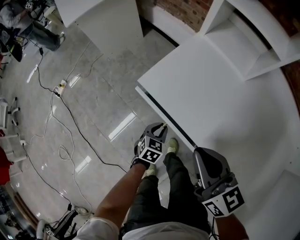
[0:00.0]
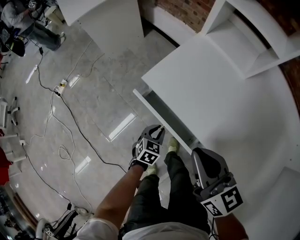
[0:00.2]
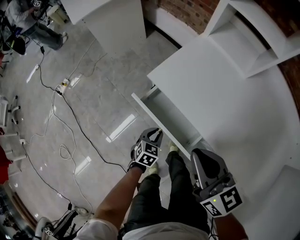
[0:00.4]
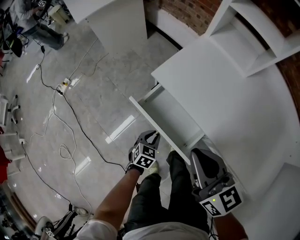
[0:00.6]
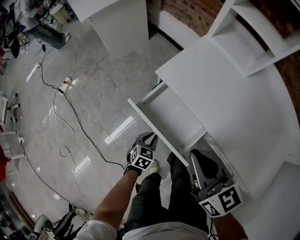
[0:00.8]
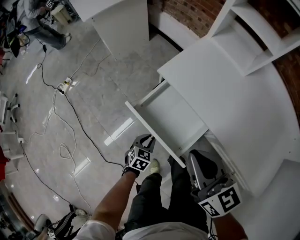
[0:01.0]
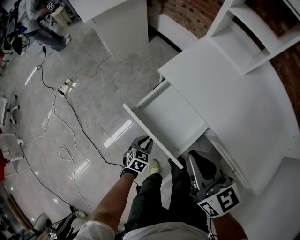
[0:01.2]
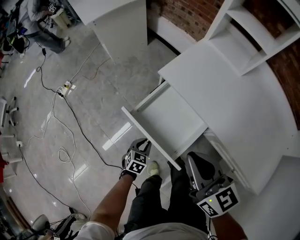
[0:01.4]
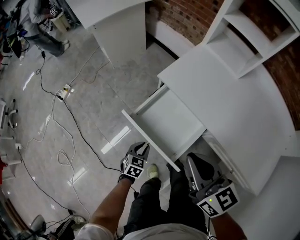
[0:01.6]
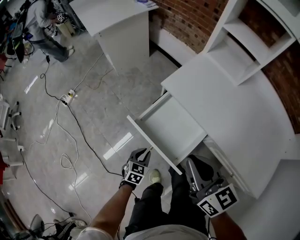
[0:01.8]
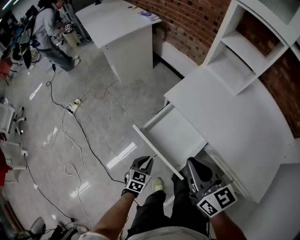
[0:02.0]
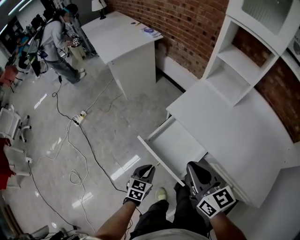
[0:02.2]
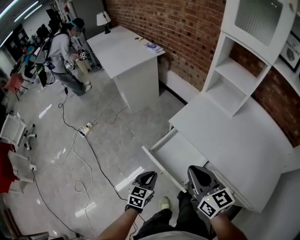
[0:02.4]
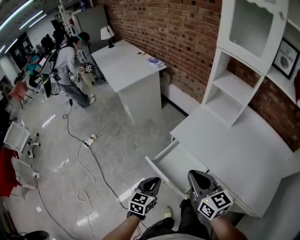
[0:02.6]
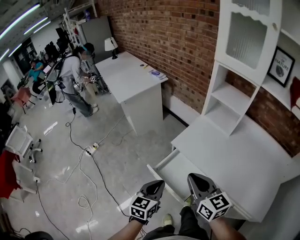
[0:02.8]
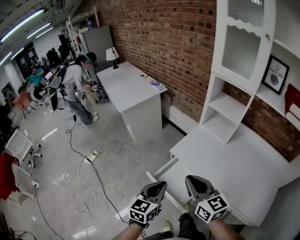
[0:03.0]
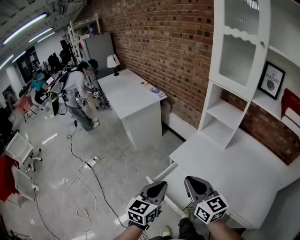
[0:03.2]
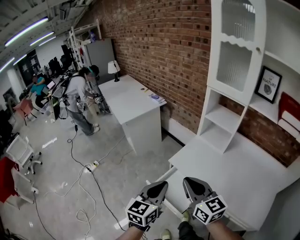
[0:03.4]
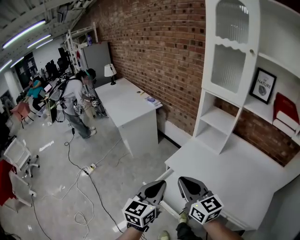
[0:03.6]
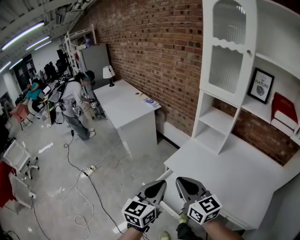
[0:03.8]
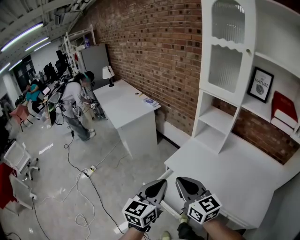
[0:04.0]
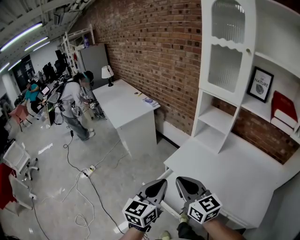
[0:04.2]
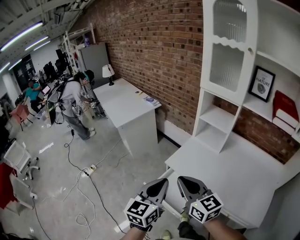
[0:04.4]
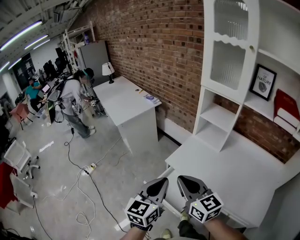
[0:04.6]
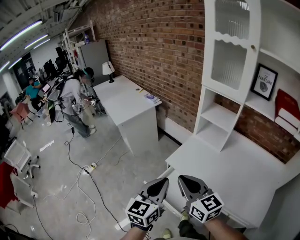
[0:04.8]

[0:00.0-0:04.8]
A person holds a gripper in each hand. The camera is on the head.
0:00.0 to 0:01.6: The grippers both shift backward and to the left by approximately 20 cm.
0:01.6 to 0:03.2: The left gripper shifts approximately 50 cm upward, and tips its fingers upward by about 40 degrees, while the right gripper shifts approximately 20 cm upward.
0:03.2 to 0:04.8: The left gripper moves upward, about 5 cm.

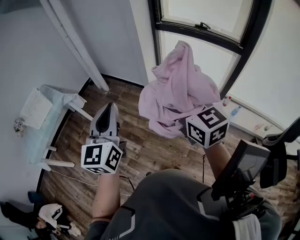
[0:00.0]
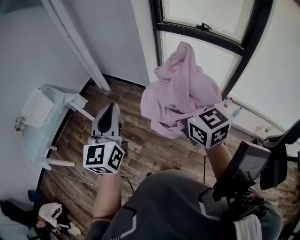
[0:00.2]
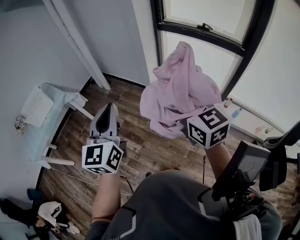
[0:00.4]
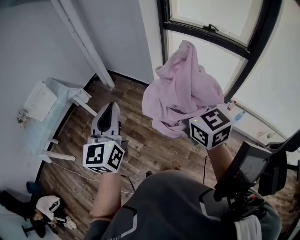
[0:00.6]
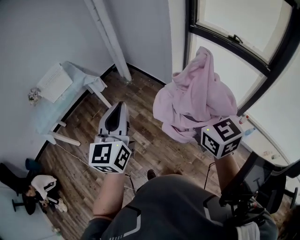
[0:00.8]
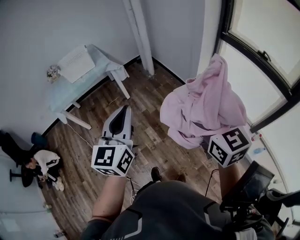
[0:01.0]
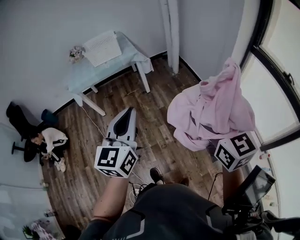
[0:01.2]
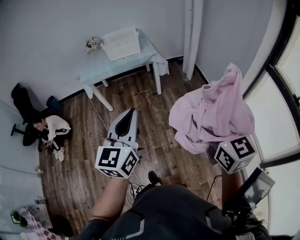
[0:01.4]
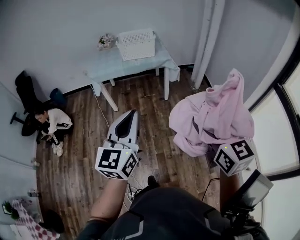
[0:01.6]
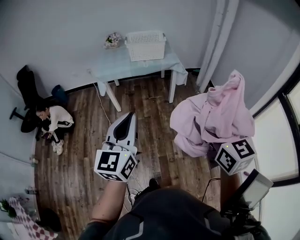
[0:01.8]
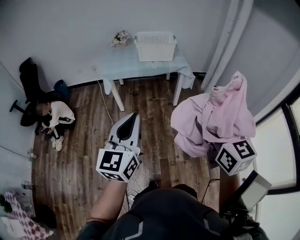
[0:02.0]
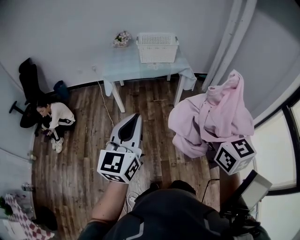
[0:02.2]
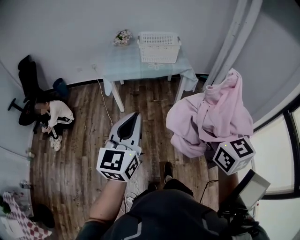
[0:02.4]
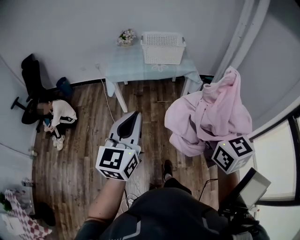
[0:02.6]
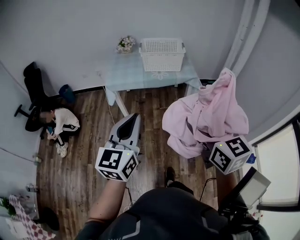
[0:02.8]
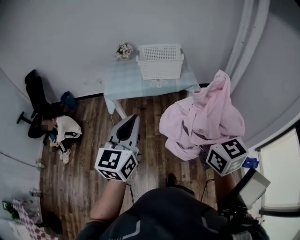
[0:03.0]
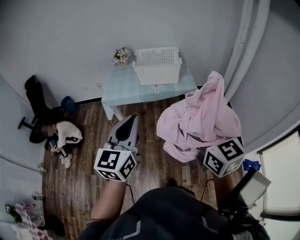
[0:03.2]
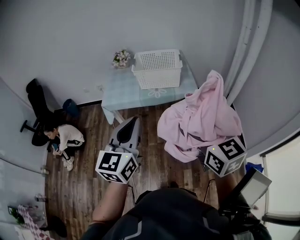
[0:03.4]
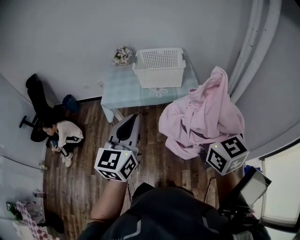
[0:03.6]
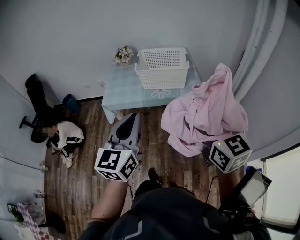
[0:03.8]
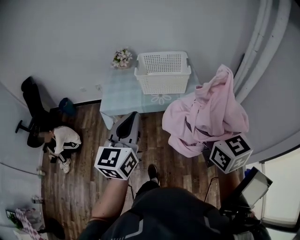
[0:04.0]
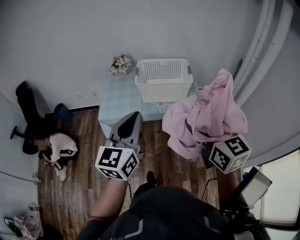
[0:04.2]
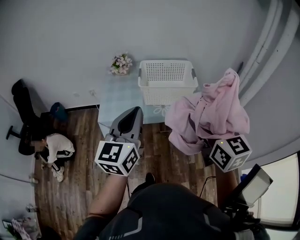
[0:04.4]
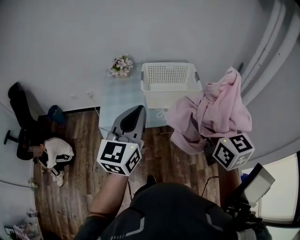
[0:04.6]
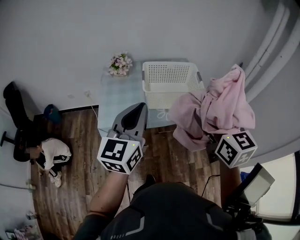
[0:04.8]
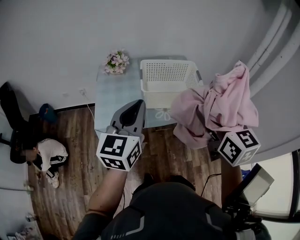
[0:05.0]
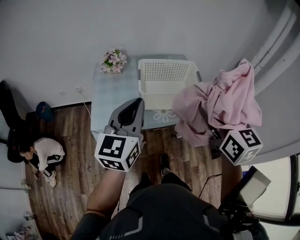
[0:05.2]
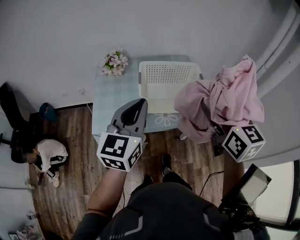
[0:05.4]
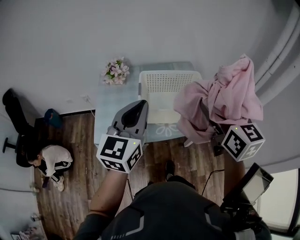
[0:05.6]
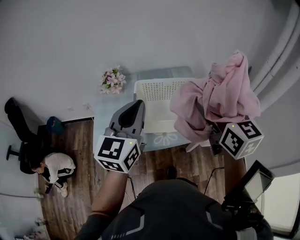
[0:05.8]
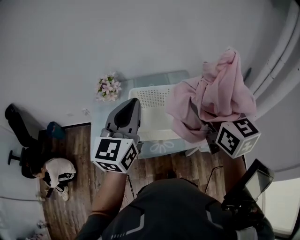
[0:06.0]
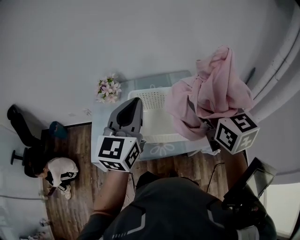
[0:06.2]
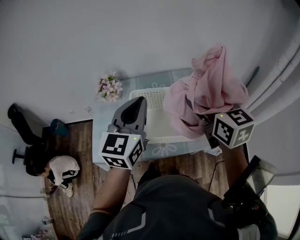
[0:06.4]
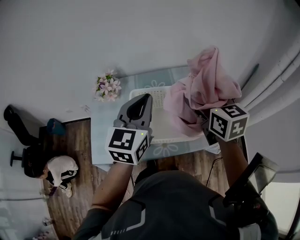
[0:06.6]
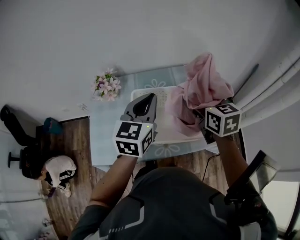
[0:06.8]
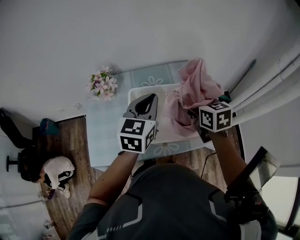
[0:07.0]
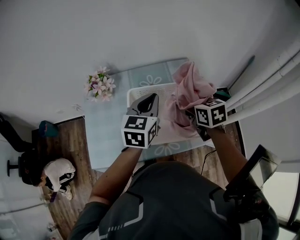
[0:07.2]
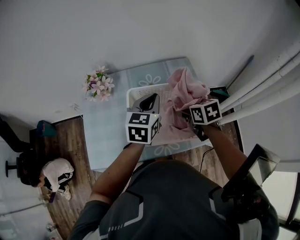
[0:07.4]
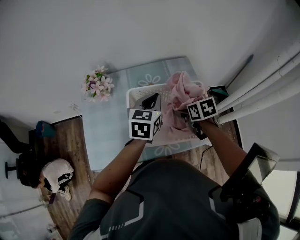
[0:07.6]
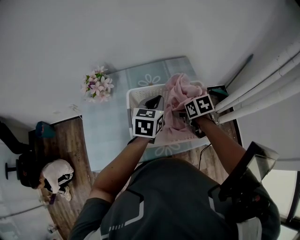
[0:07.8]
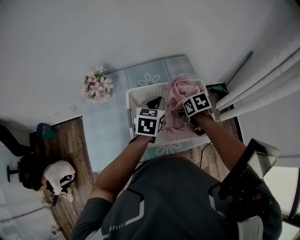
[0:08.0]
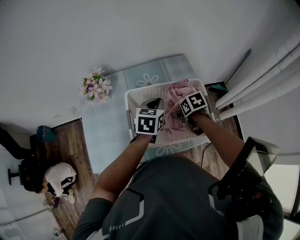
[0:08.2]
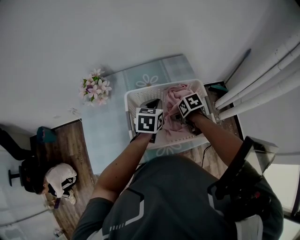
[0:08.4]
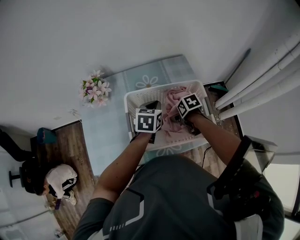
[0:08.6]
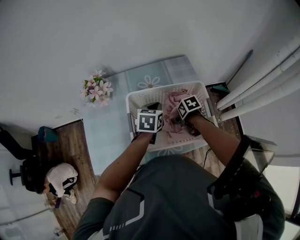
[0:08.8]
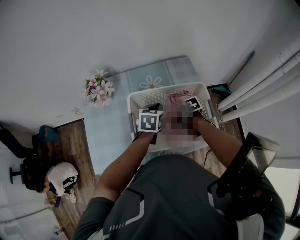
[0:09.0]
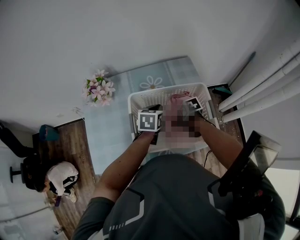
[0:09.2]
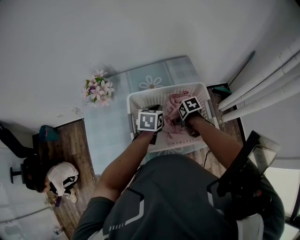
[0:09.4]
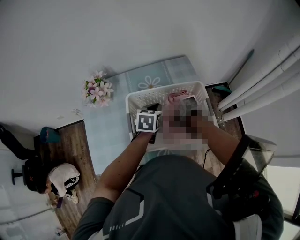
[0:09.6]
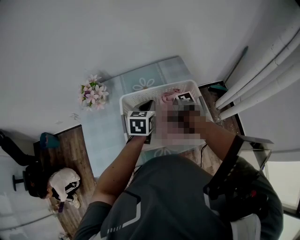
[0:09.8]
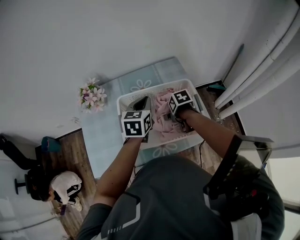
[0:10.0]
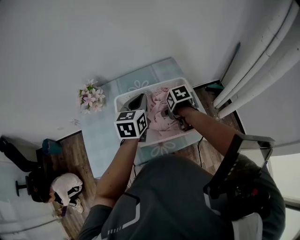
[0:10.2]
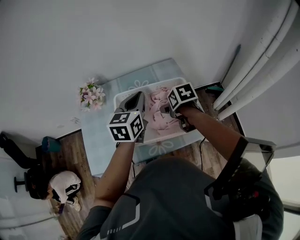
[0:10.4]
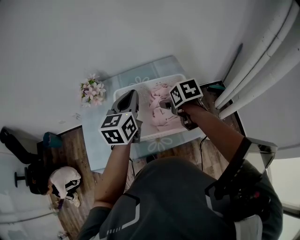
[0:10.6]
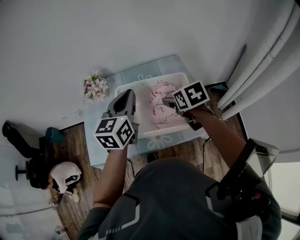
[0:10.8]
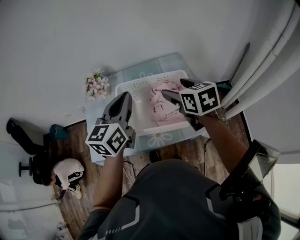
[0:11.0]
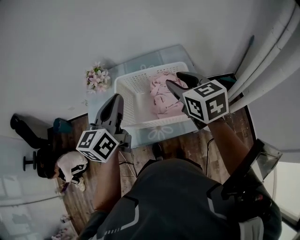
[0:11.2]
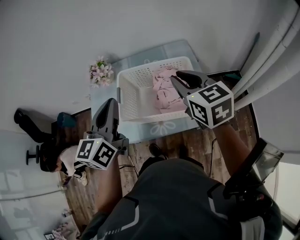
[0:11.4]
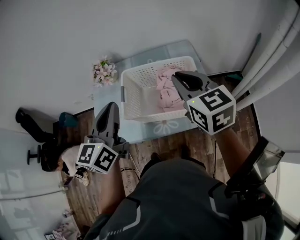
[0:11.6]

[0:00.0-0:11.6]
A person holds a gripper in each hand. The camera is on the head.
0:00.0 to 0:01.4: The right gripper changes place by approximately 25 cm, and rotates some 30 degrees. The left gripper shifts by approximately 25 cm, and turns by about 40 degrees.
0:01.4 to 0:02.8: Both grippers move forward and to the left, some 30 cm.
0:02.8 to 0:04.4: Both grippers travel together forward, some 35 cm.
0:04.4 to 0:05.8: The two grippers go approximately 25 cm forward.
0:05.8 to 0:07.2: The right gripper moves downward and forward, about 30 cm, and points its fingers roughly 30 degrees further downward, while the left gripper shifts about 25 cm forward and downward.
0:07.2 to 0:08.8: Both grippers move downward, roughly 20 cm. The right gripper angles its fingers downward, by roughly 30 degrees; the left gripper changes its angle by roughly 20 degrees.
0:08.8 to 0:10.2: Both grippers travel together upward, about 10 cm.
0:10.2 to 0:11.6: The left gripper shifts about 25 cm backward, upward and to the left, and turns by approximately 20 degrees, while the right gripper goes about 25 cm upward, points its fingers about 50 degrees further upward, and closes.

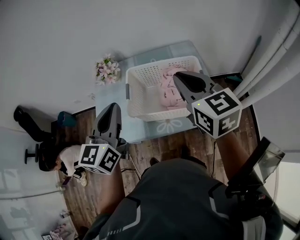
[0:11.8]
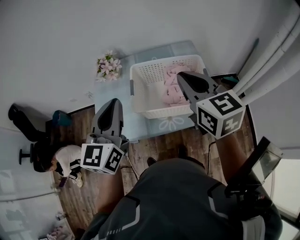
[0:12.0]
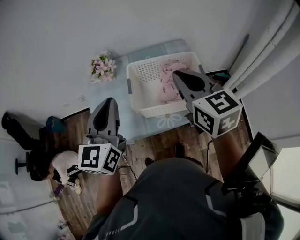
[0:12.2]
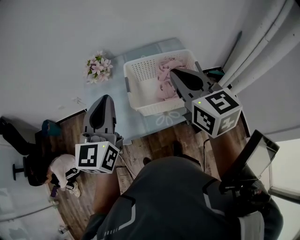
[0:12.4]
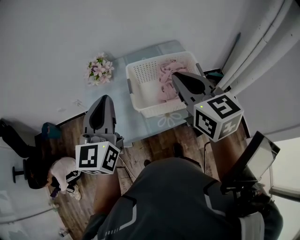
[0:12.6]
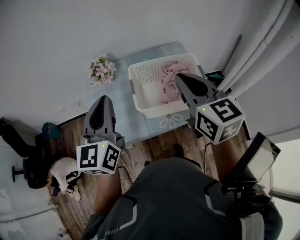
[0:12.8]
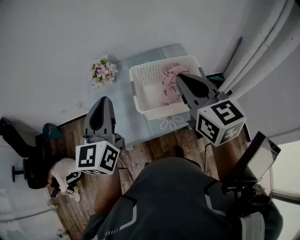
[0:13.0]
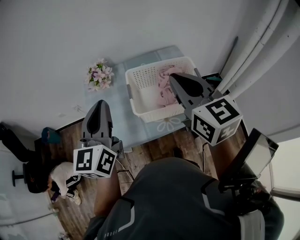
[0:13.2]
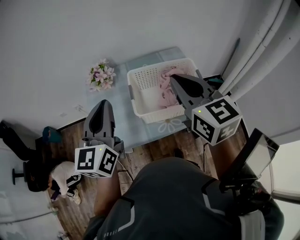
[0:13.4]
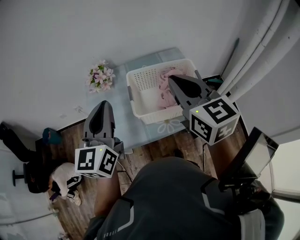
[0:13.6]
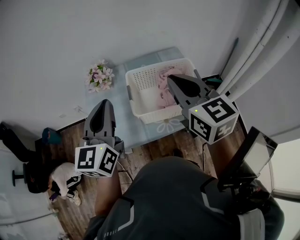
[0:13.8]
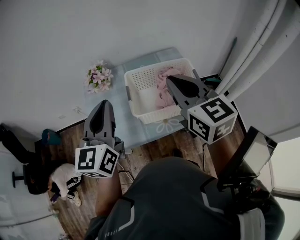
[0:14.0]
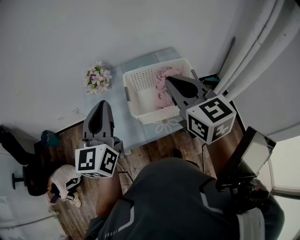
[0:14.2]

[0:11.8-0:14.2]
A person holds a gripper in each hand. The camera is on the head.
0:11.8 to 0:13.0: The right gripper goes approximately 10 cm to the left and backward. Meanwhile the left gripper heads to the left, covering roughly 10 cm.
0:13.0 to 0:14.2: There are only small adjustments of the grippers.

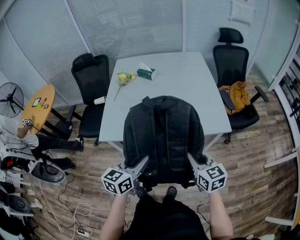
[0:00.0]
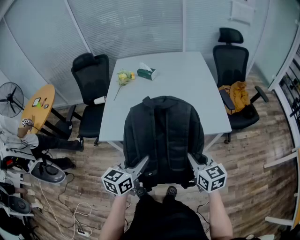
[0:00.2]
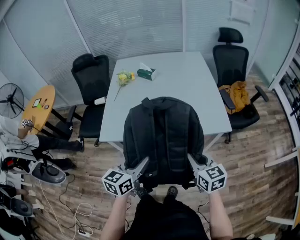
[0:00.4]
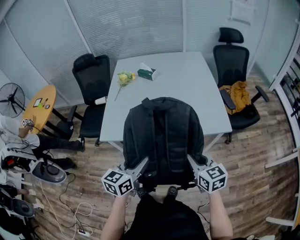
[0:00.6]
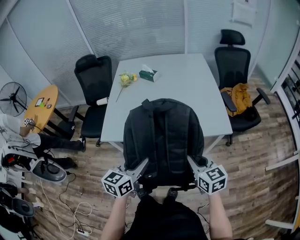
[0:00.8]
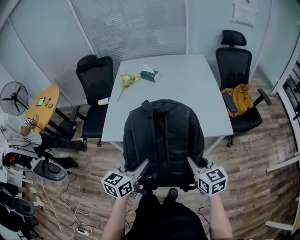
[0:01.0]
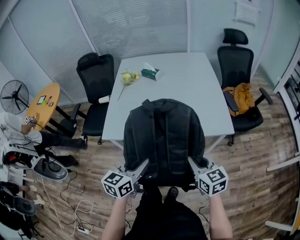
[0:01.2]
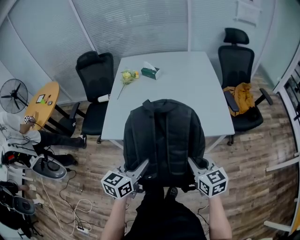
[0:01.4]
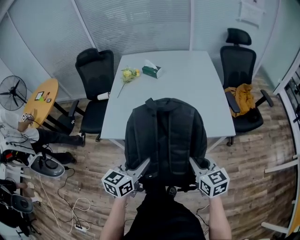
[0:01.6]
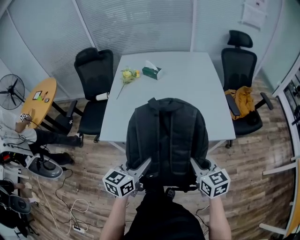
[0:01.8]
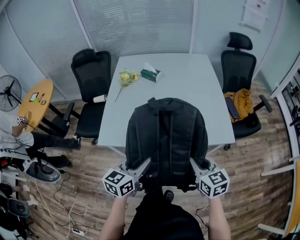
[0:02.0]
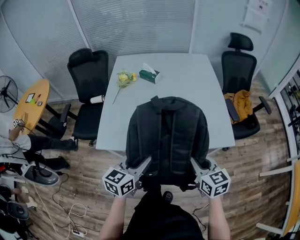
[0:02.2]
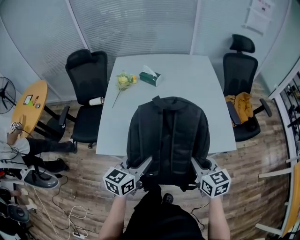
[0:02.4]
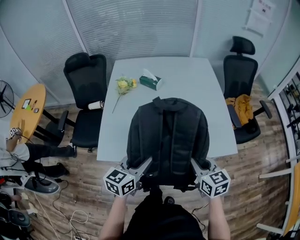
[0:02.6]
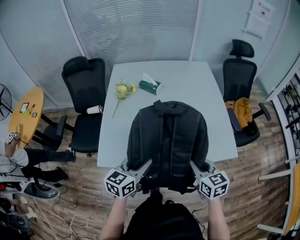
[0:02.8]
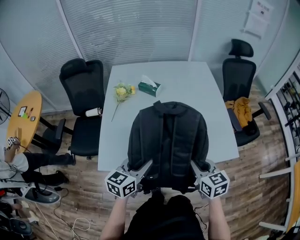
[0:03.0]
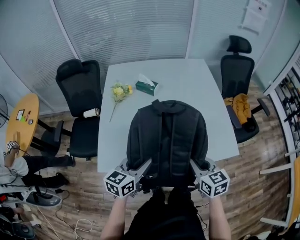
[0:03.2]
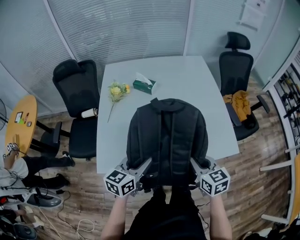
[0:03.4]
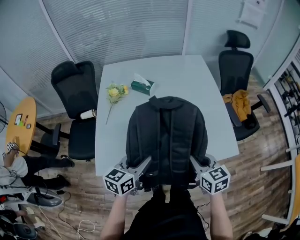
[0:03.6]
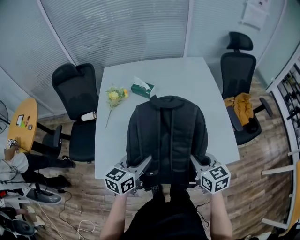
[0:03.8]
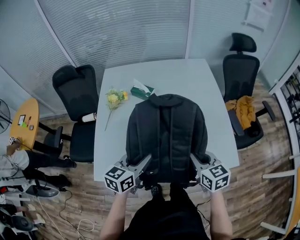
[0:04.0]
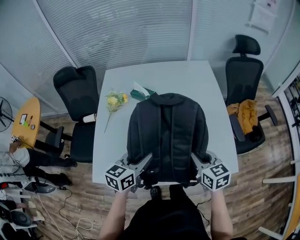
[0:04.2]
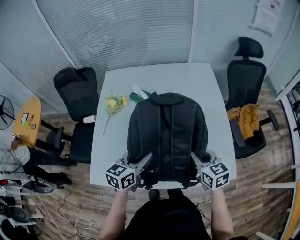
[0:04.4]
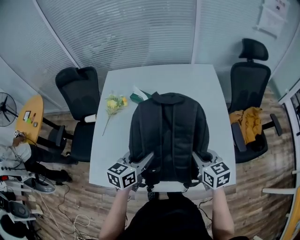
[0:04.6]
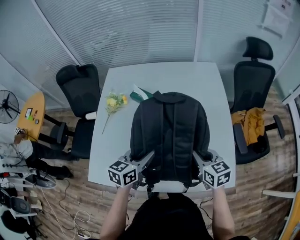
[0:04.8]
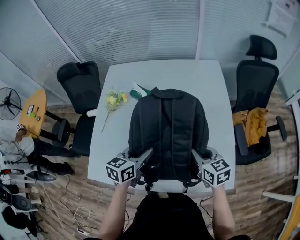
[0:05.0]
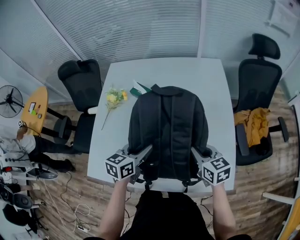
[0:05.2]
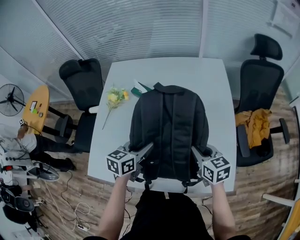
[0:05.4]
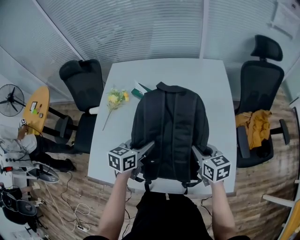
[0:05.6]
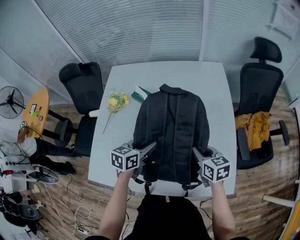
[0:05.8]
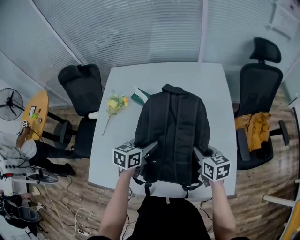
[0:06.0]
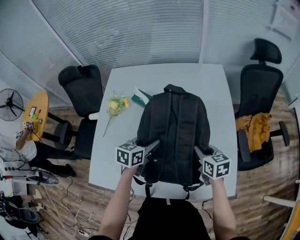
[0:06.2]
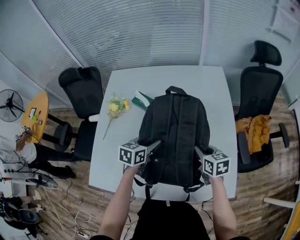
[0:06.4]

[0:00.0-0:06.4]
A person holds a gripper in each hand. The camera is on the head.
0:00.0 to 0:01.6: There are only small adjustments of the grippers.
0:01.6 to 0:03.2: The grippers both shift forward by roughly 20 cm.
0:03.2 to 0:04.8: The two grippers go some 25 cm forward and to the right.
0:04.8 to 0:06.4: The right gripper heads forward, covering about 10 cm. The left gripper is displaced forward and downward by roughly 10 cm.
